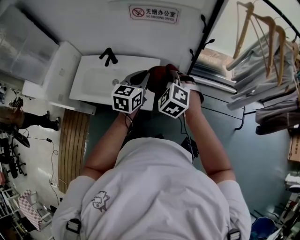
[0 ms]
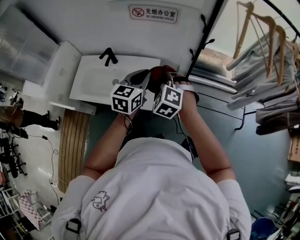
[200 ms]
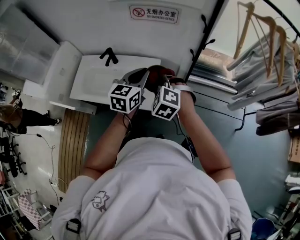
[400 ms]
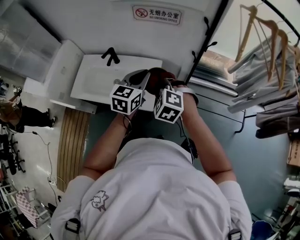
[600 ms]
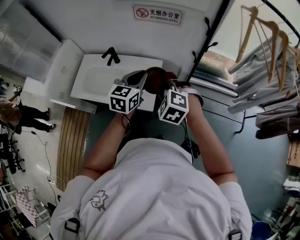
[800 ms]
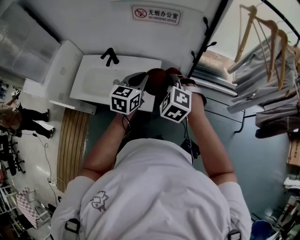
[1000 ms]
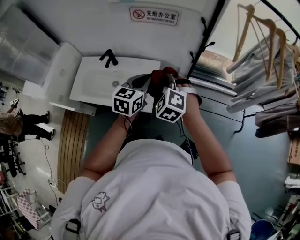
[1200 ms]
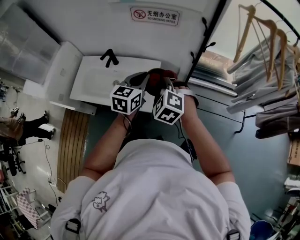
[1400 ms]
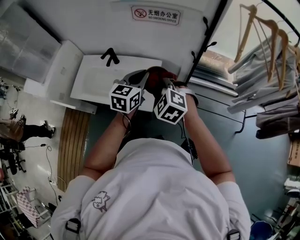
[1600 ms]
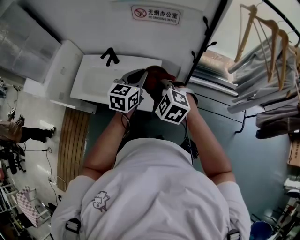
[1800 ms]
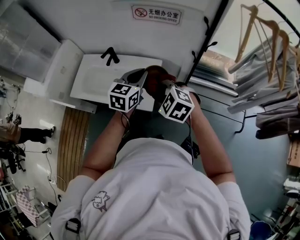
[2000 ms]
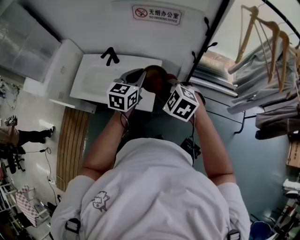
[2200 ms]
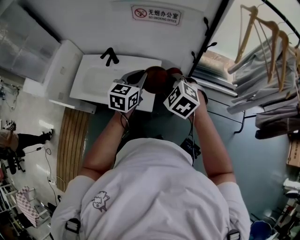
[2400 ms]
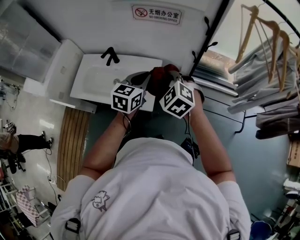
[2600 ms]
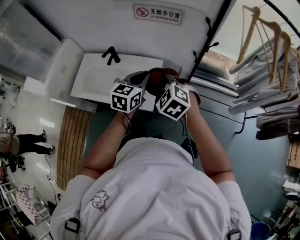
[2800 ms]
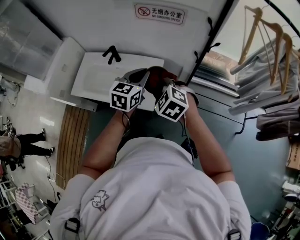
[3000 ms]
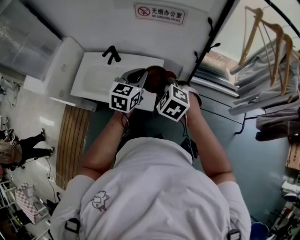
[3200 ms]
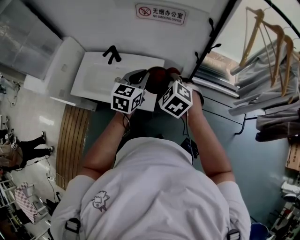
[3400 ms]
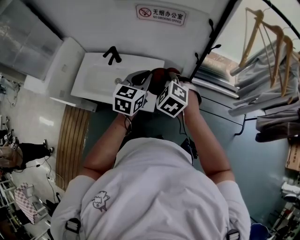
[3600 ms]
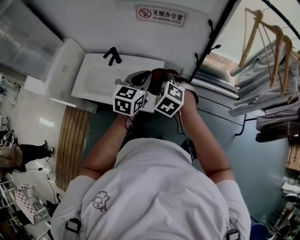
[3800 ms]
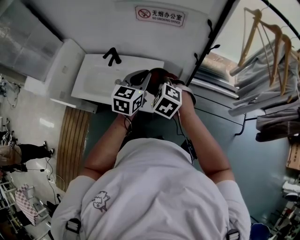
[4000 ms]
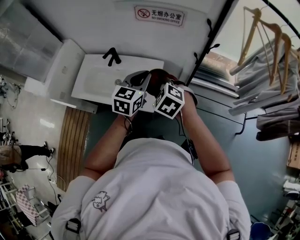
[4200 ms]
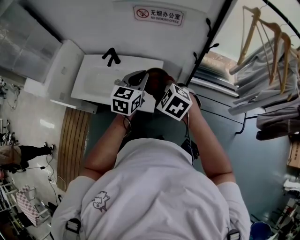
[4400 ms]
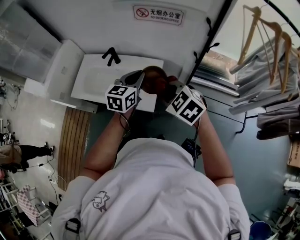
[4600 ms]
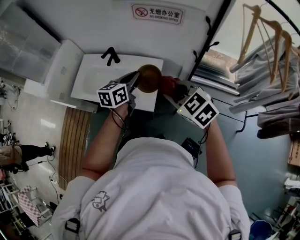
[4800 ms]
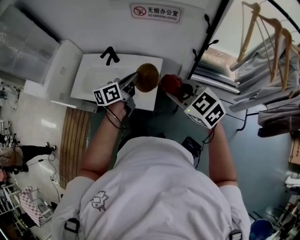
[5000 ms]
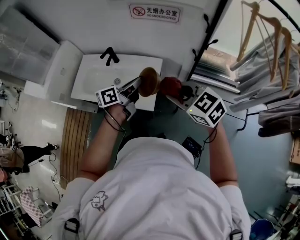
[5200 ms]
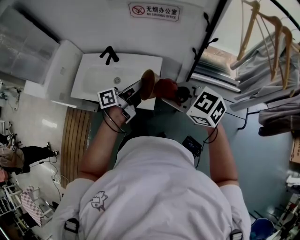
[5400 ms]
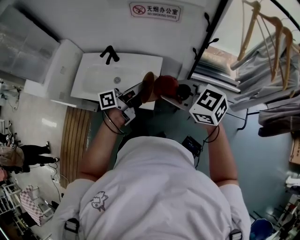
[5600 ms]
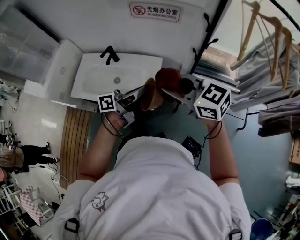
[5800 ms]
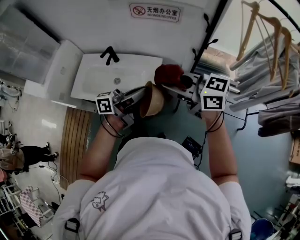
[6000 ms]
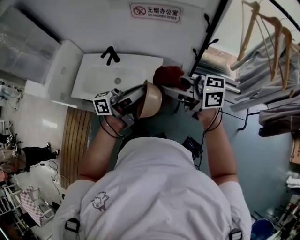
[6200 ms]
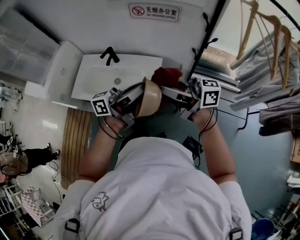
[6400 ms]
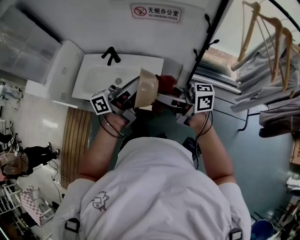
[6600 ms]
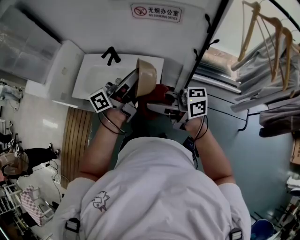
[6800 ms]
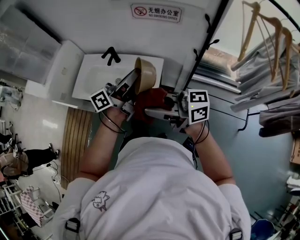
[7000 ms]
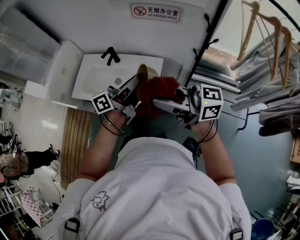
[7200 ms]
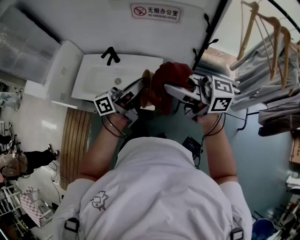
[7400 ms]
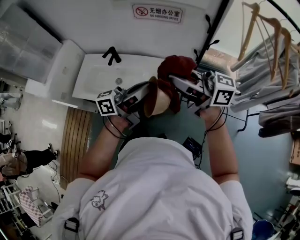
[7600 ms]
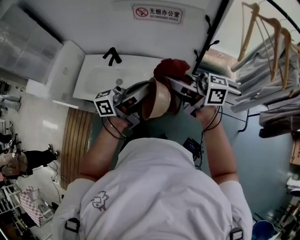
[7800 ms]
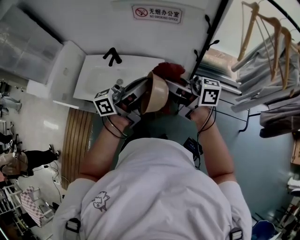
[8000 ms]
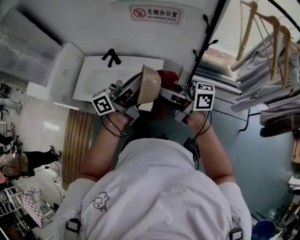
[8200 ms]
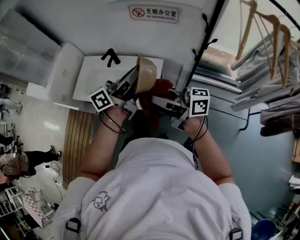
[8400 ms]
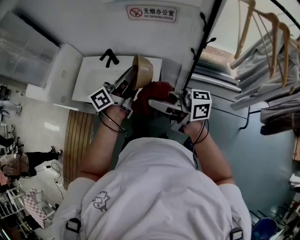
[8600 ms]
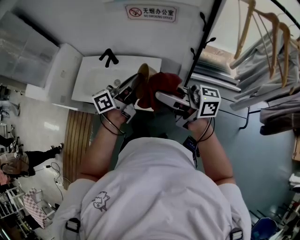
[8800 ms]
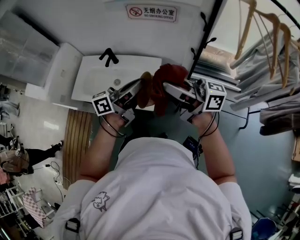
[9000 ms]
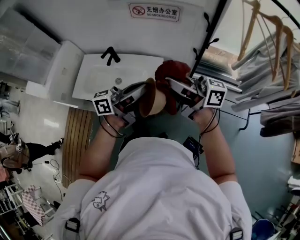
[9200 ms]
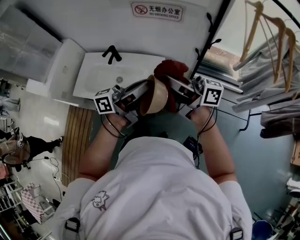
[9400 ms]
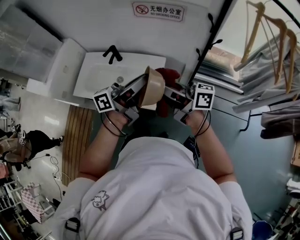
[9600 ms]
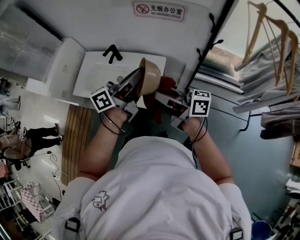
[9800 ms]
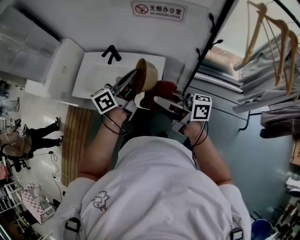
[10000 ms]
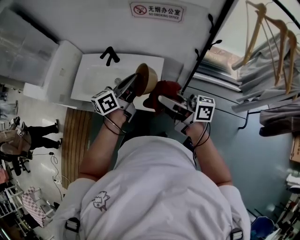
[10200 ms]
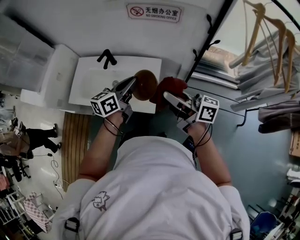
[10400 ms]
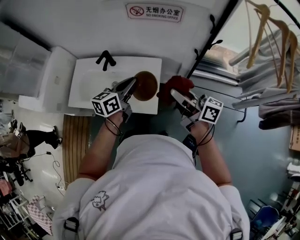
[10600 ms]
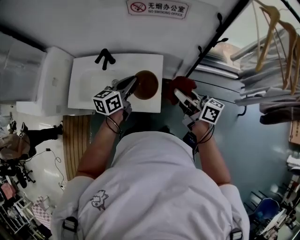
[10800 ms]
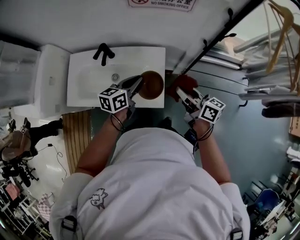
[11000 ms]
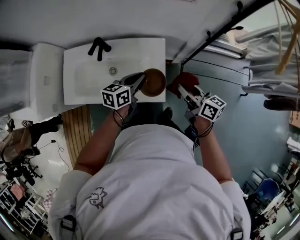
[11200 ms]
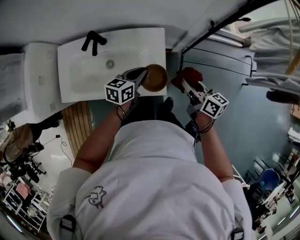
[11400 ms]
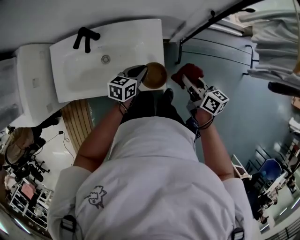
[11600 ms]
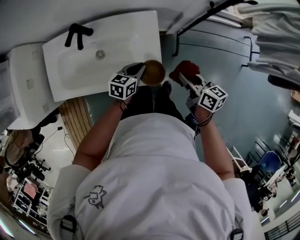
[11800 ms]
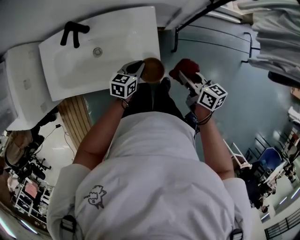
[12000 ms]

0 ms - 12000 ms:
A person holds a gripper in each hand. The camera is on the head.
0 ms - 1600 ms: The right gripper changes place by approximately 5 cm.
1600 ms - 4400 ms: There are only small adjustments of the grippers.
4400 ms - 6000 ms: The right gripper moves upward, about 15 cm, and tilts its fingers some 50 degrees upward. The left gripper ends up some 10 cm from where it was, and tips its fingers upward by roughly 40 degrees.
6000 ms - 7600 ms: Both grippers move upward, about 5 cm. The right gripper swivels about 20 degrees.
9000 ms - 10400 ms: The right gripper goes approximately 10 cm downward, while the left gripper moves some 10 cm, and turns by about 30 degrees.
10400 ms - 12000 ms: The two grippers go some 30 cm downward. The right gripper angles its fingers downward, by some 40 degrees; the left gripper changes its angle by roughly 30 degrees.

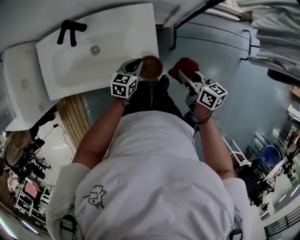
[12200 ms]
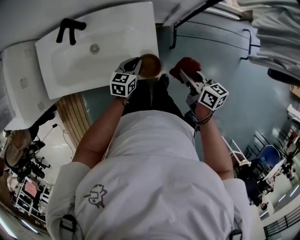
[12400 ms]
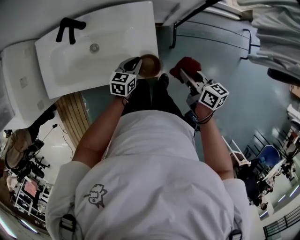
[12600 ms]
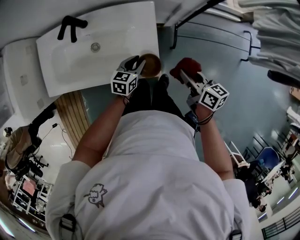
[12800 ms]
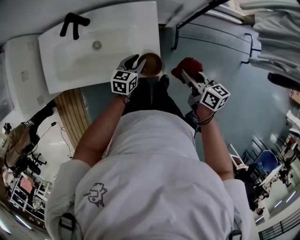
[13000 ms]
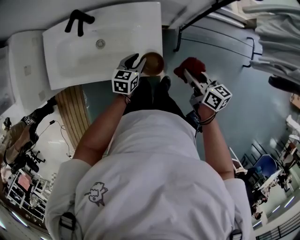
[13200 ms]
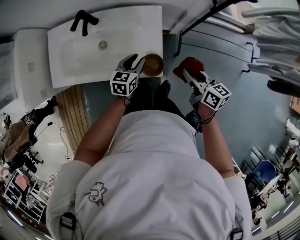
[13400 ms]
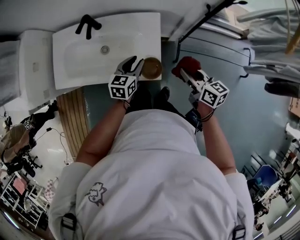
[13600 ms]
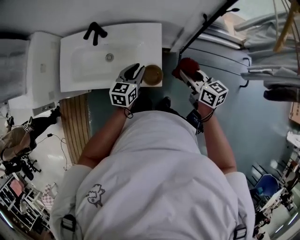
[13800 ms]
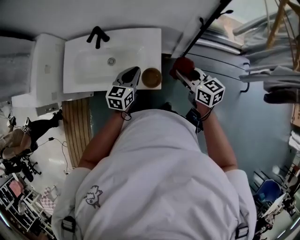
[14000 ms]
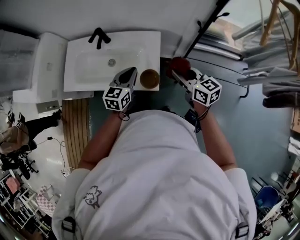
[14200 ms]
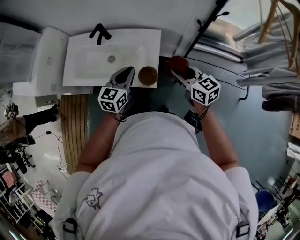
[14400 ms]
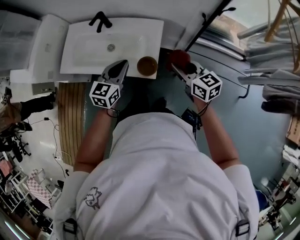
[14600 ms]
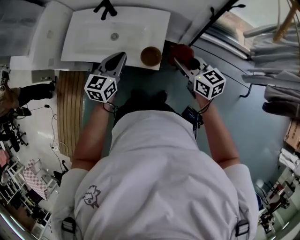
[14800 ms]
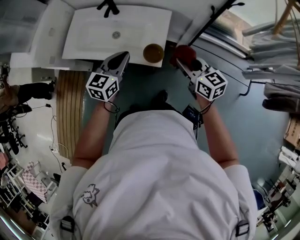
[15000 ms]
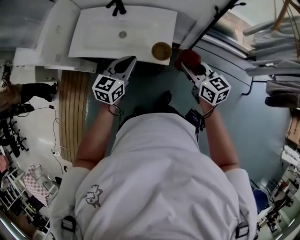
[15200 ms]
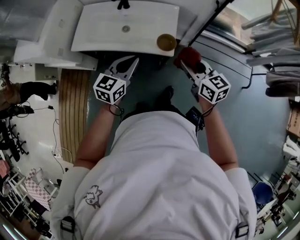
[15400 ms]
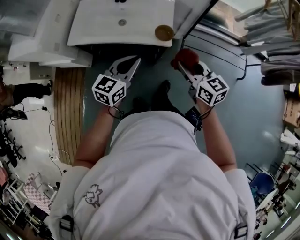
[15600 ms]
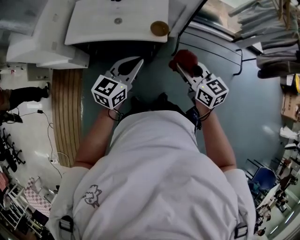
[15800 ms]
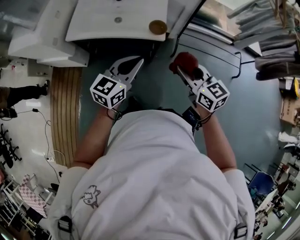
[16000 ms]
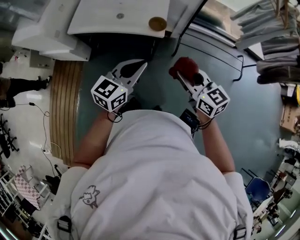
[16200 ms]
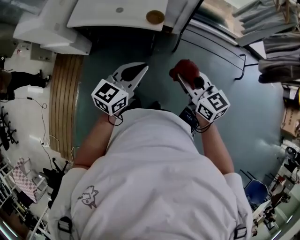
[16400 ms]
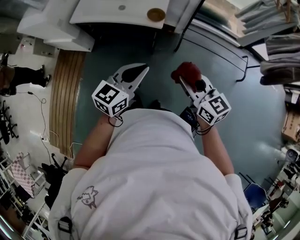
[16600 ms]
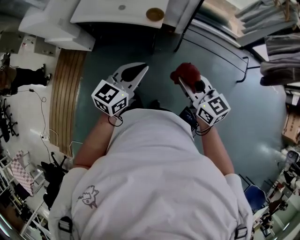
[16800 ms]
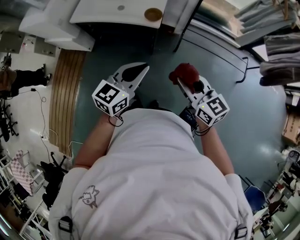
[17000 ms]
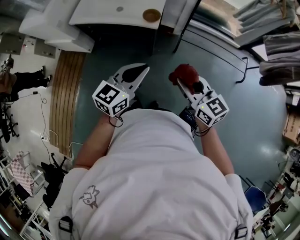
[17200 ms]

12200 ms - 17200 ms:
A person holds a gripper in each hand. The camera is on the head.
12200 ms - 13800 ms: The left gripper heads upward, covering approximately 15 cm; the right gripper goes about 10 cm upward, and changes its angle by roughly 20 degrees.
13800 ms - 15600 ms: The left gripper moves backward, to the left and upward, about 30 cm, and closes; the right gripper moves backward and to the left, roughly 25 cm.
15600 ms - 17200 ms: Both grippers travel together backward and to the right, roughly 25 cm.

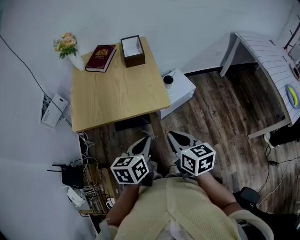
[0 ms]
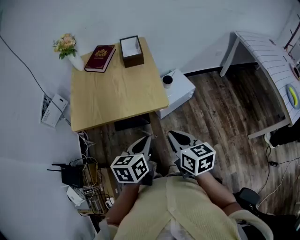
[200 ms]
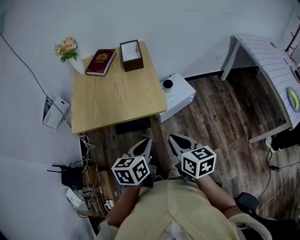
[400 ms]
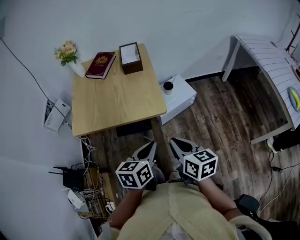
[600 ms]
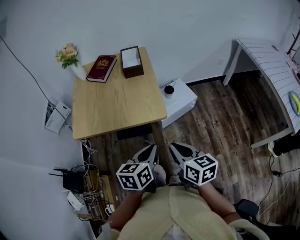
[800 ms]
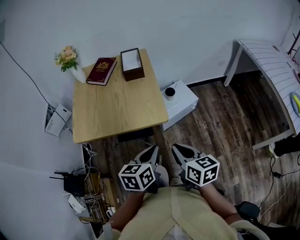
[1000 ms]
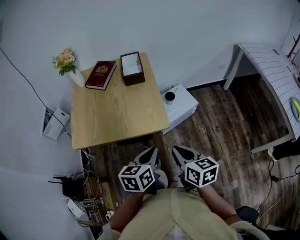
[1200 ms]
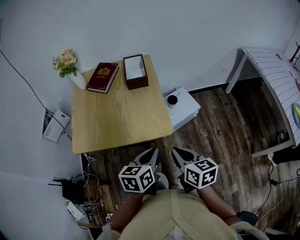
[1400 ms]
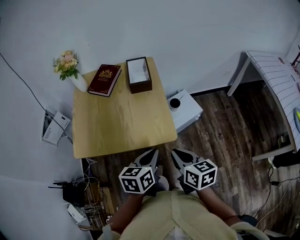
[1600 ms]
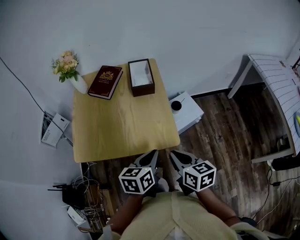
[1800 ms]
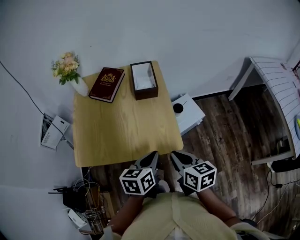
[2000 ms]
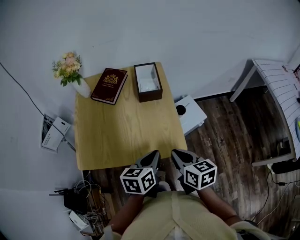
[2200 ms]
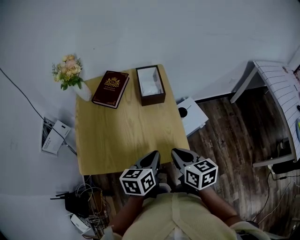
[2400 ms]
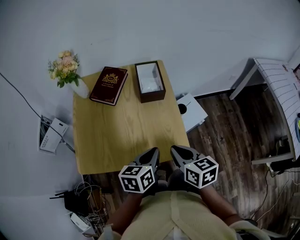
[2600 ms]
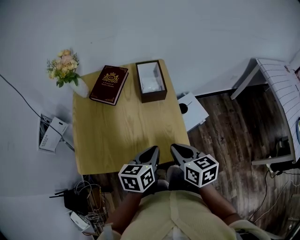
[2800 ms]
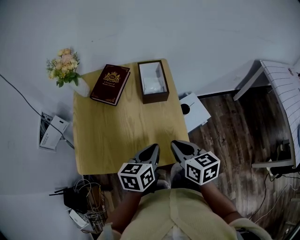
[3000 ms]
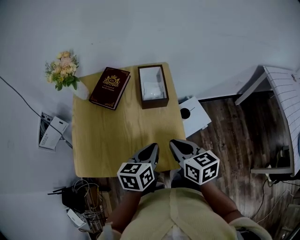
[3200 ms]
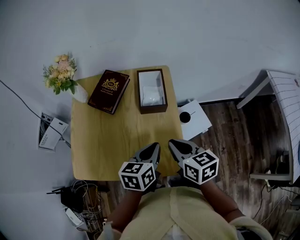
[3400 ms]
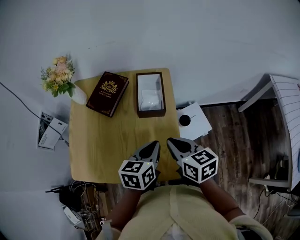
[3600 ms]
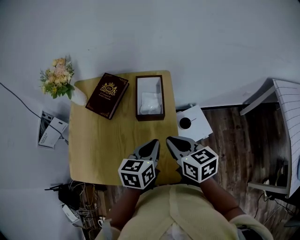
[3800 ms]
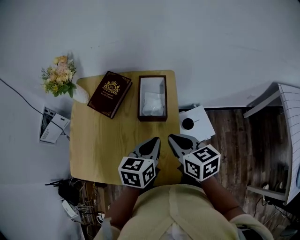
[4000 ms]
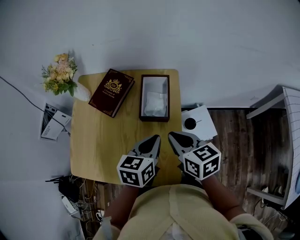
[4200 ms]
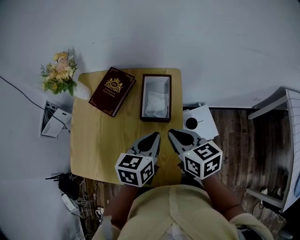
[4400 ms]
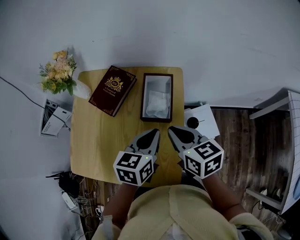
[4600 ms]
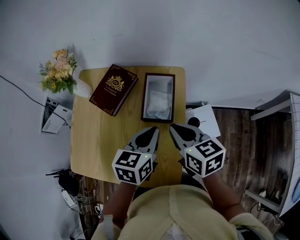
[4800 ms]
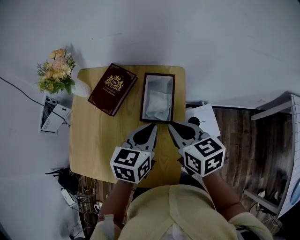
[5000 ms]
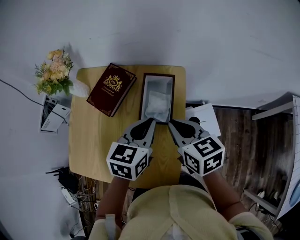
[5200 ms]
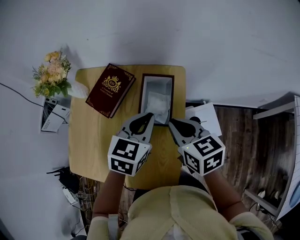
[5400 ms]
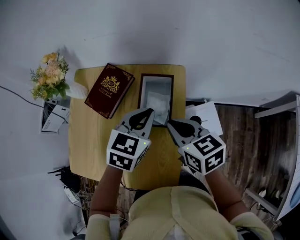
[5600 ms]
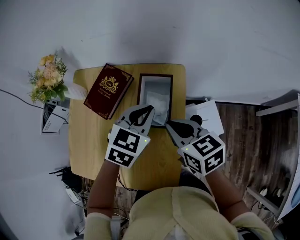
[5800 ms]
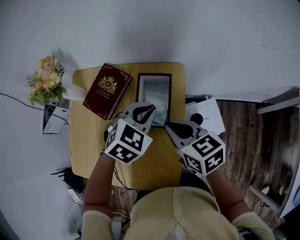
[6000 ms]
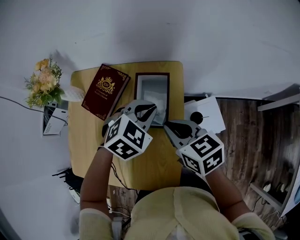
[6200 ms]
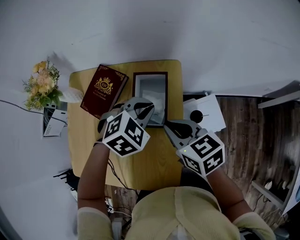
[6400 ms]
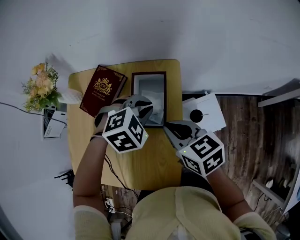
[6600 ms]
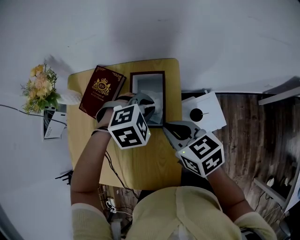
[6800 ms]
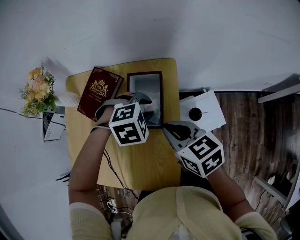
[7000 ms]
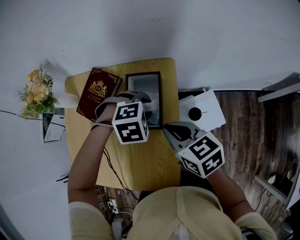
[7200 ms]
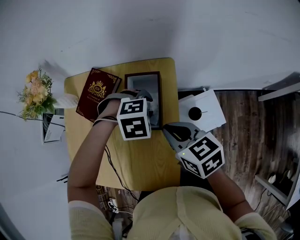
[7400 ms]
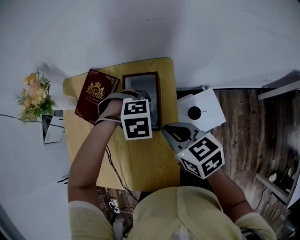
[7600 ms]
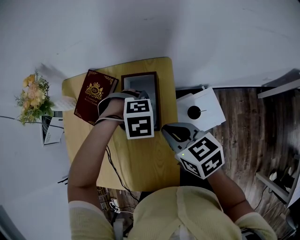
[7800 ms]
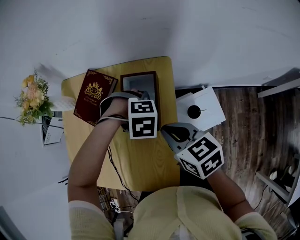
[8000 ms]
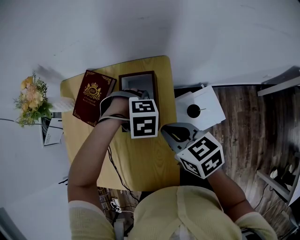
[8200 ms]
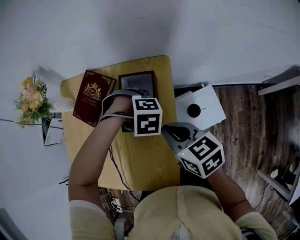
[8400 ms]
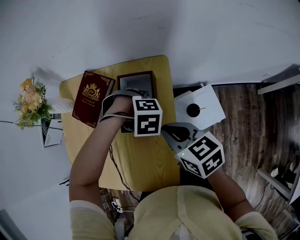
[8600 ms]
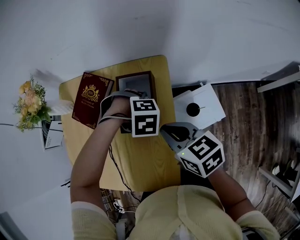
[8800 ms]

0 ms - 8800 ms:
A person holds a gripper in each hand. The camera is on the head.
0 ms - 1400 ms: Both grippers move forward, about 10 cm.
1400 ms - 3000 ms: Both grippers travel together forward and to the left, some 20 cm.
3000 ms - 4400 ms: The grippers both shift forward by about 15 cm.
4400 ms - 5800 ms: The left gripper moves forward, approximately 10 cm, and turns by about 30 degrees, while the right gripper shifts about 5 cm forward.
5800 ms - 7400 ms: The left gripper moves downward, roughly 10 cm, angles its fingers downward, by some 40 degrees, and opens.
7400 ms - 8800 ms: The grippers make only small movements.
